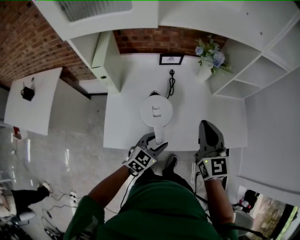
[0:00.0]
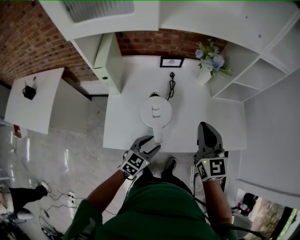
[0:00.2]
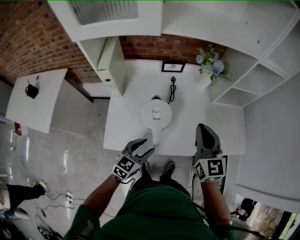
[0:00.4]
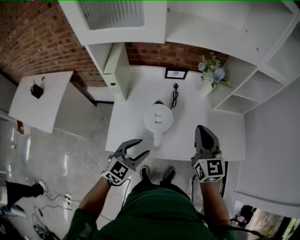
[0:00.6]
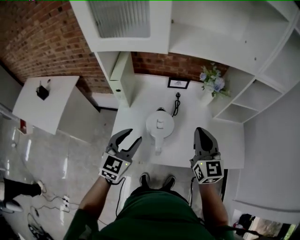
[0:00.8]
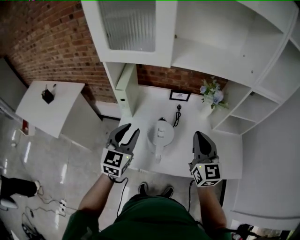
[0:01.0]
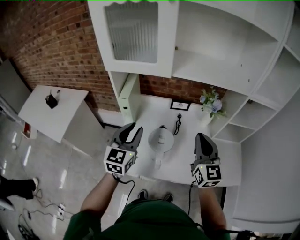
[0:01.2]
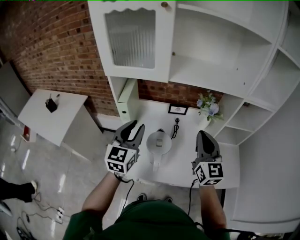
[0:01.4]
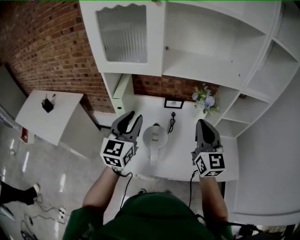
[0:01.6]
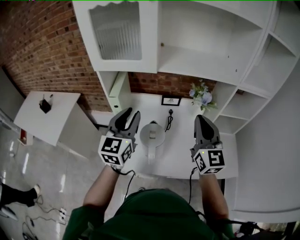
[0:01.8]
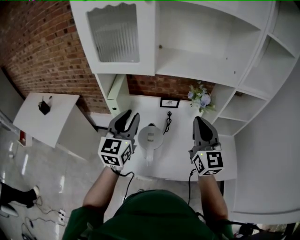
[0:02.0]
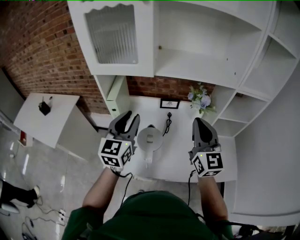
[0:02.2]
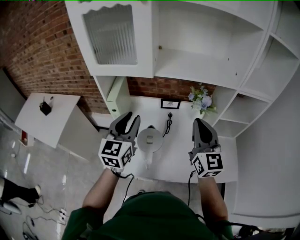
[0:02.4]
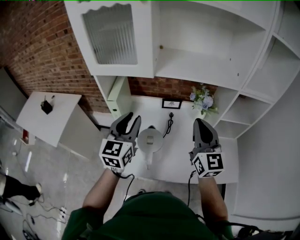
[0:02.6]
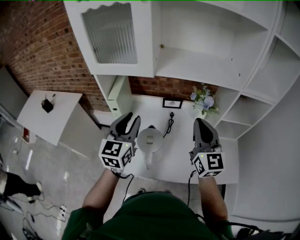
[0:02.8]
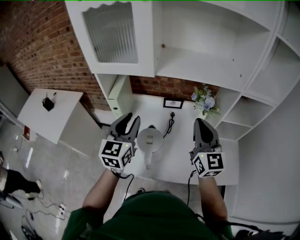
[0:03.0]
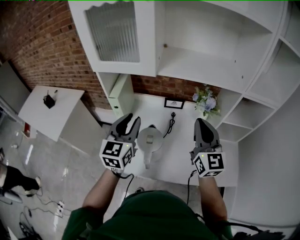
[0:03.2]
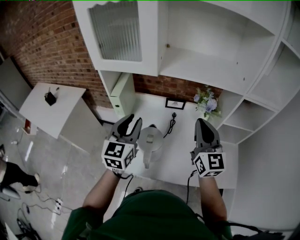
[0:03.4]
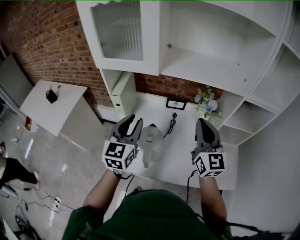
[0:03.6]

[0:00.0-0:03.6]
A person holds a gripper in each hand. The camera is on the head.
0:00.0 to 0:01.8: The right gripper moves upward, approximately 15 cm. The left gripper goes about 30 cm upward, and rotates about 50 degrees.
0:01.8 to 0:03.6: The right gripper changes place by some 5 cm.

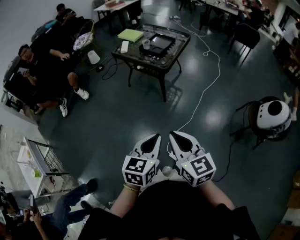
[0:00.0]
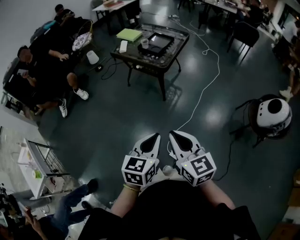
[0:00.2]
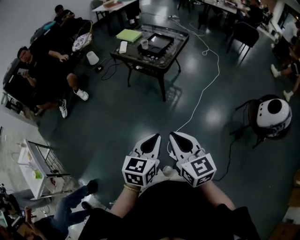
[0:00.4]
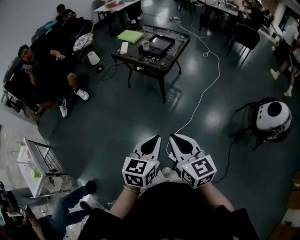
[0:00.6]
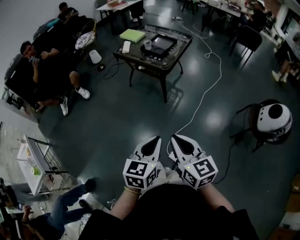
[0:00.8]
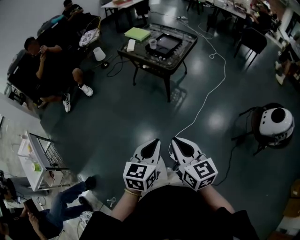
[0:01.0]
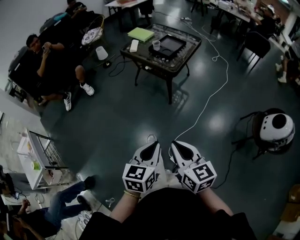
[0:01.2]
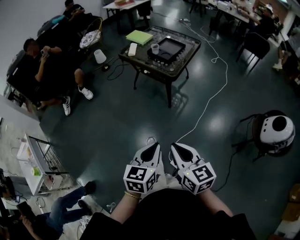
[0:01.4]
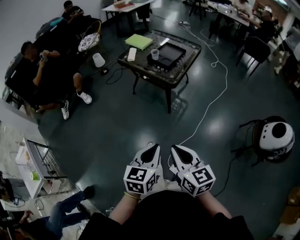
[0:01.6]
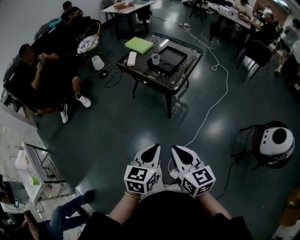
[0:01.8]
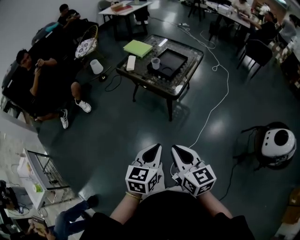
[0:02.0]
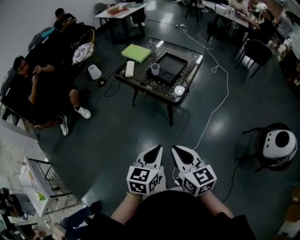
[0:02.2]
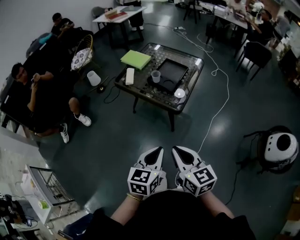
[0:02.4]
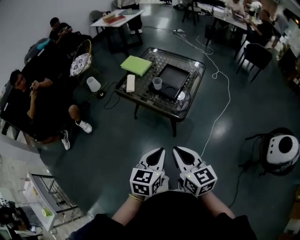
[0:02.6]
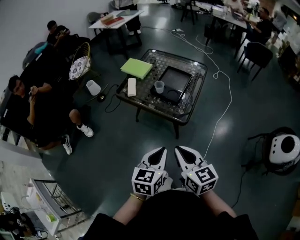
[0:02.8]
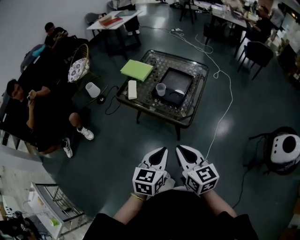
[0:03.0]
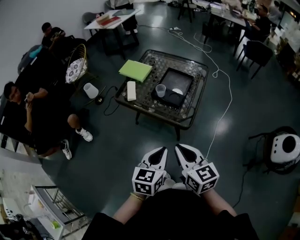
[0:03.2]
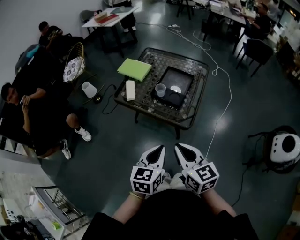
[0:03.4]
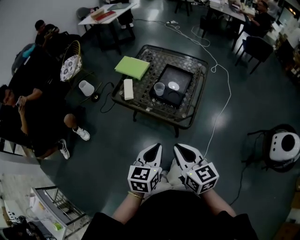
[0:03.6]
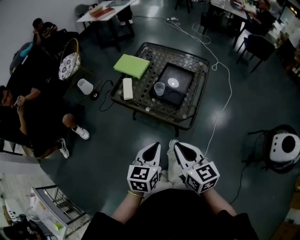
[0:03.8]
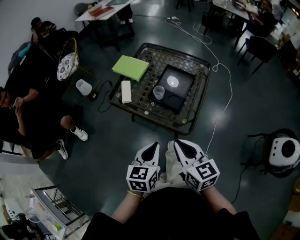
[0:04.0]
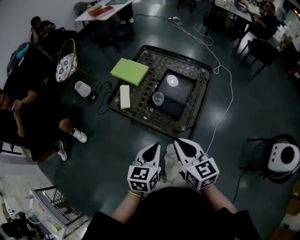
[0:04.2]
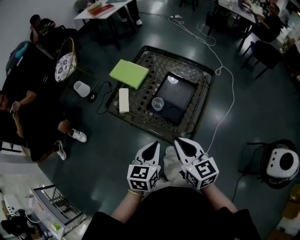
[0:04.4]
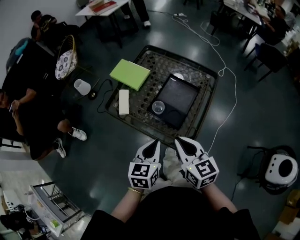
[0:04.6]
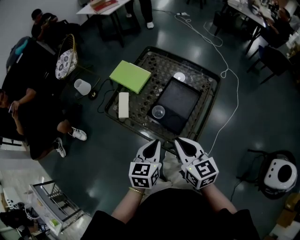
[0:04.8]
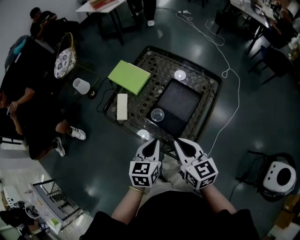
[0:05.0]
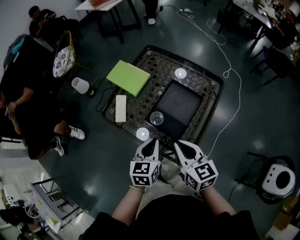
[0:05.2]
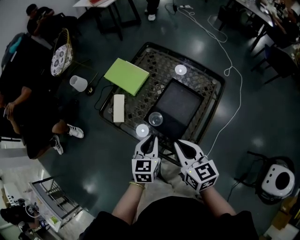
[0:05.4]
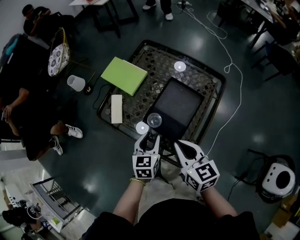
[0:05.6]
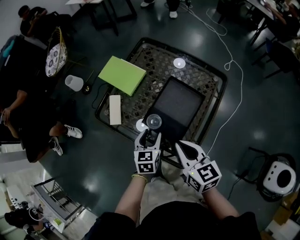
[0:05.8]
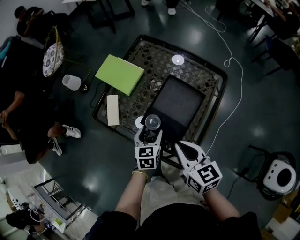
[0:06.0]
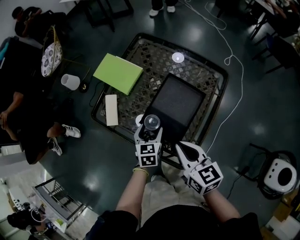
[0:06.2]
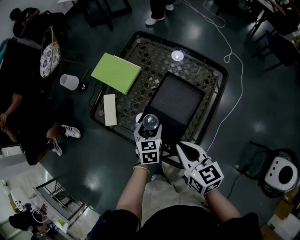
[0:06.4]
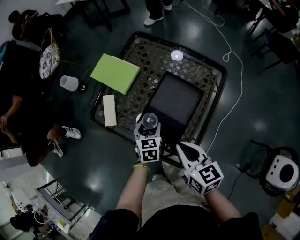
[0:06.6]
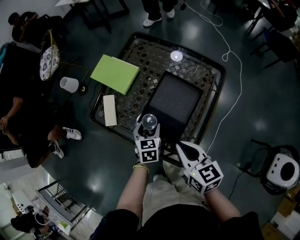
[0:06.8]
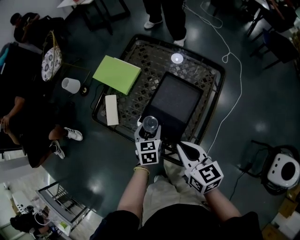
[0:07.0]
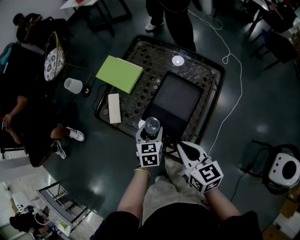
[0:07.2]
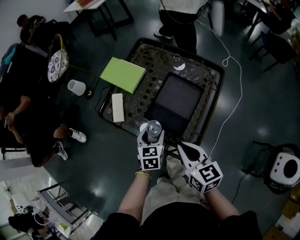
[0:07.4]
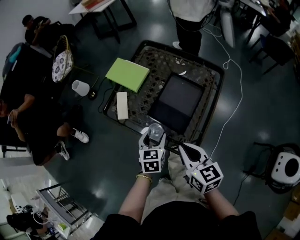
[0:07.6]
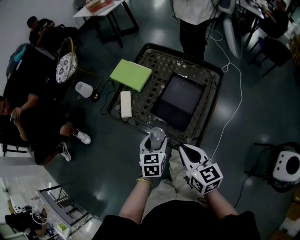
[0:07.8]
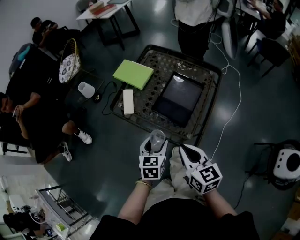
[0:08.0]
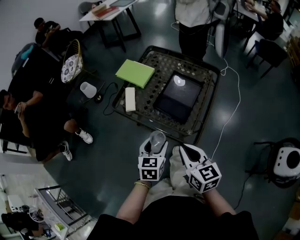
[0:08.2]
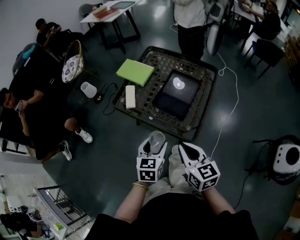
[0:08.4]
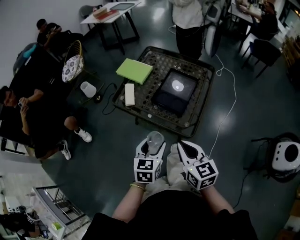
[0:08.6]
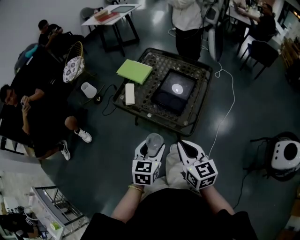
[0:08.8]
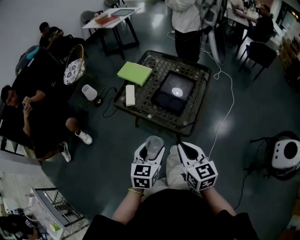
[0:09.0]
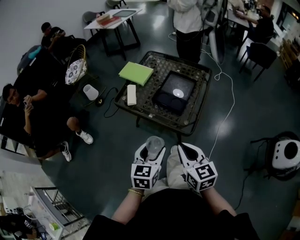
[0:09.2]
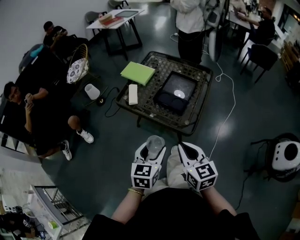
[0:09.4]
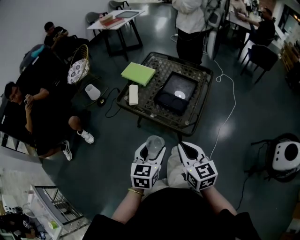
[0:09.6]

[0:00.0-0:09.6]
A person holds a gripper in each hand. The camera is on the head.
0:00.0 to 0:01.6: The grippers both shift forward by about 10 cm.
0:01.6 to 0:03.2: The two grippers go roughly 35 cm forward.
0:03.2 to 0:04.8: Both grippers travel together forward, about 25 cm.
0:04.8 to 0:06.4: The right gripper goes some 10 cm downward and forward; the left gripper travels downward and forward by approximately 25 cm, and opens up.
0:06.4 to 0:08.0: The right gripper moves backward, to the left and upward, roughly 15 cm, while the left gripper moves backward and upward, some 20 cm.
0:08.0 to 0:09.6: The left gripper shifts about 20 cm backward and upward, while the right gripper goes some 15 cm backward.

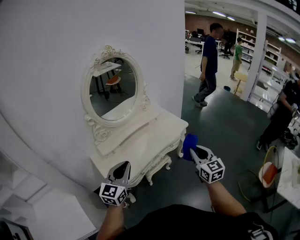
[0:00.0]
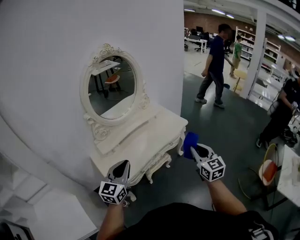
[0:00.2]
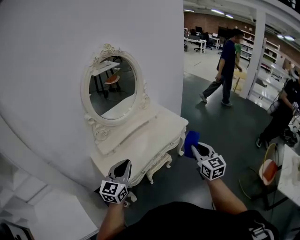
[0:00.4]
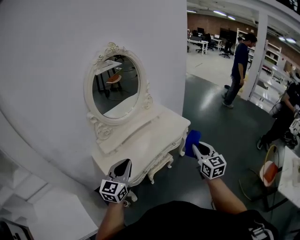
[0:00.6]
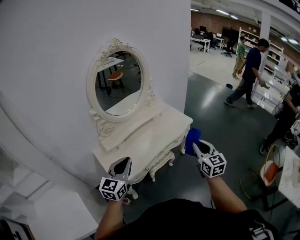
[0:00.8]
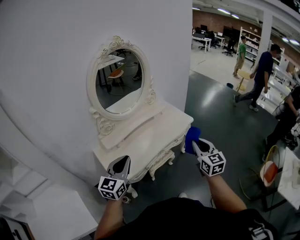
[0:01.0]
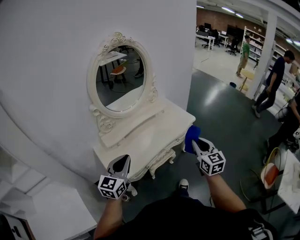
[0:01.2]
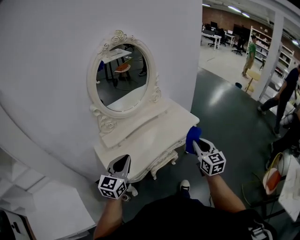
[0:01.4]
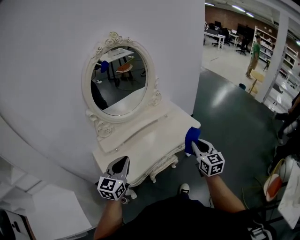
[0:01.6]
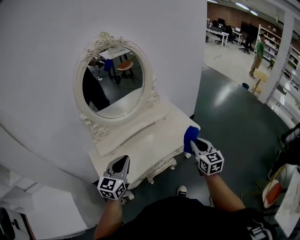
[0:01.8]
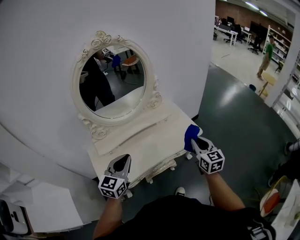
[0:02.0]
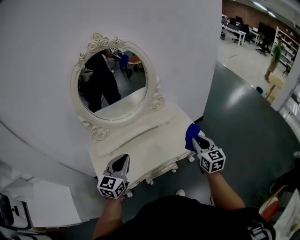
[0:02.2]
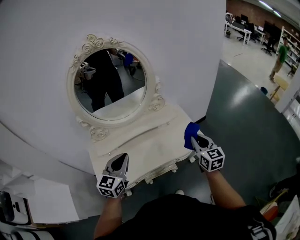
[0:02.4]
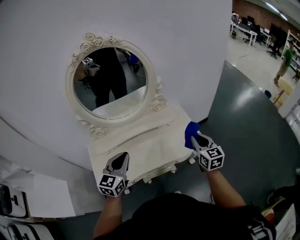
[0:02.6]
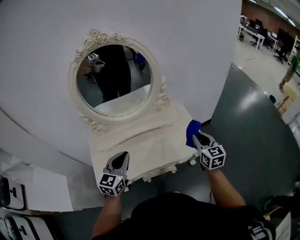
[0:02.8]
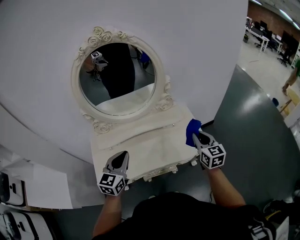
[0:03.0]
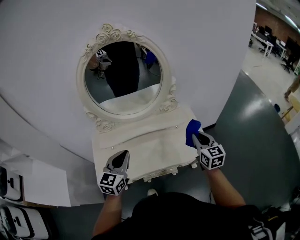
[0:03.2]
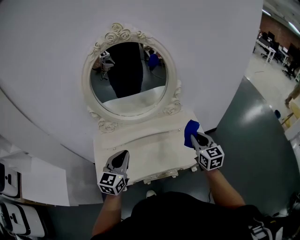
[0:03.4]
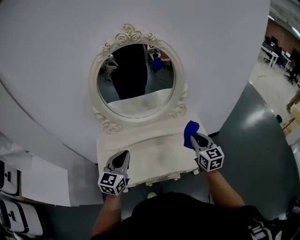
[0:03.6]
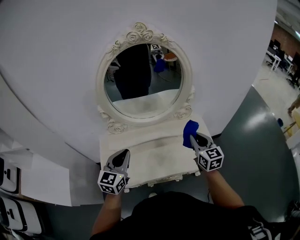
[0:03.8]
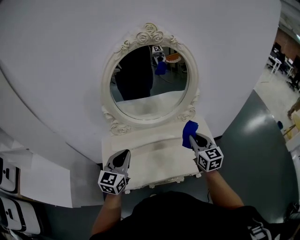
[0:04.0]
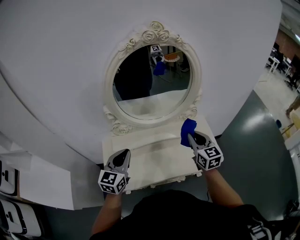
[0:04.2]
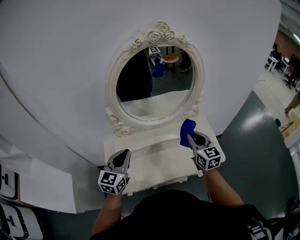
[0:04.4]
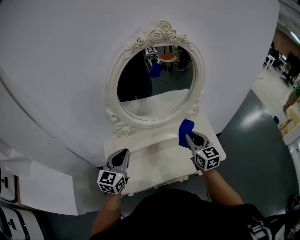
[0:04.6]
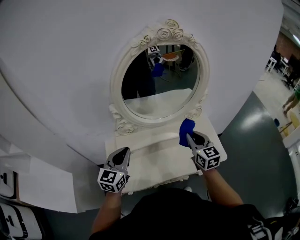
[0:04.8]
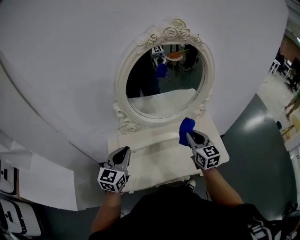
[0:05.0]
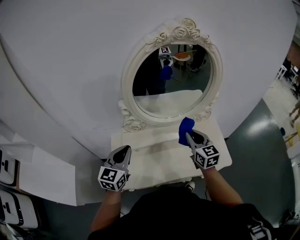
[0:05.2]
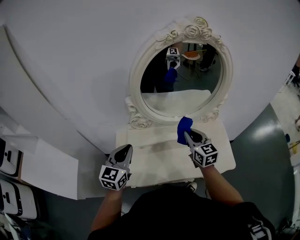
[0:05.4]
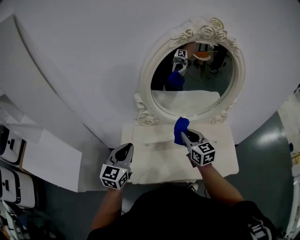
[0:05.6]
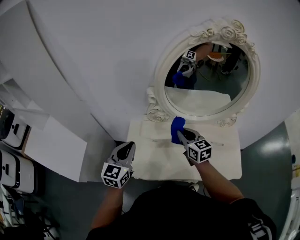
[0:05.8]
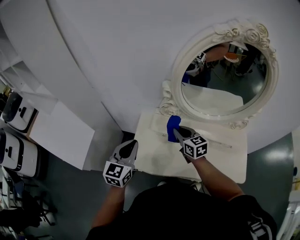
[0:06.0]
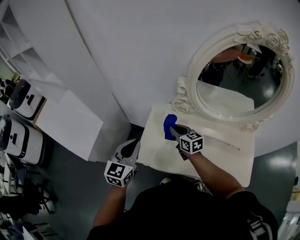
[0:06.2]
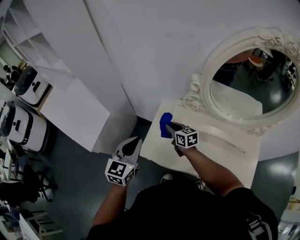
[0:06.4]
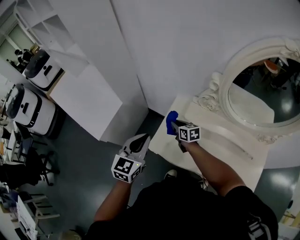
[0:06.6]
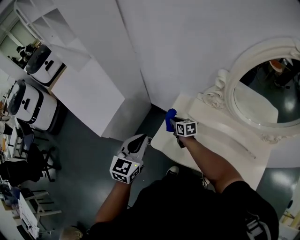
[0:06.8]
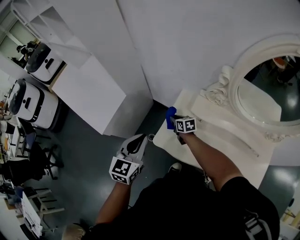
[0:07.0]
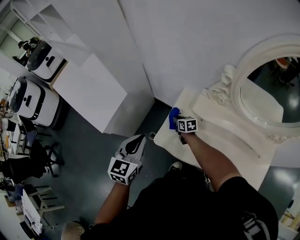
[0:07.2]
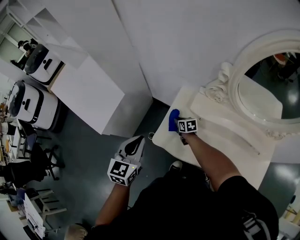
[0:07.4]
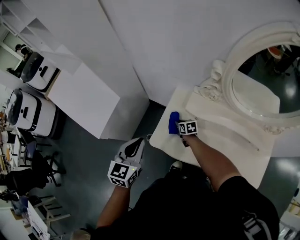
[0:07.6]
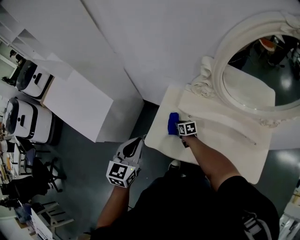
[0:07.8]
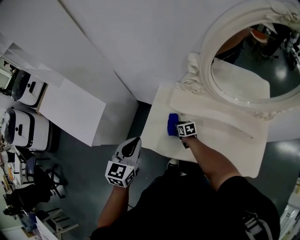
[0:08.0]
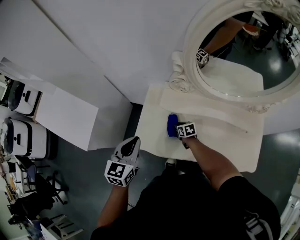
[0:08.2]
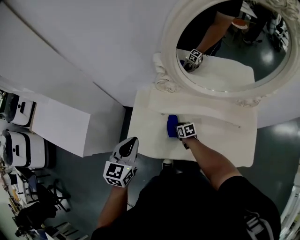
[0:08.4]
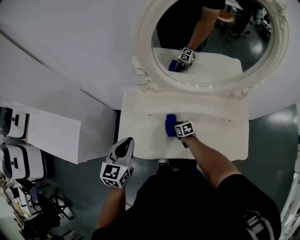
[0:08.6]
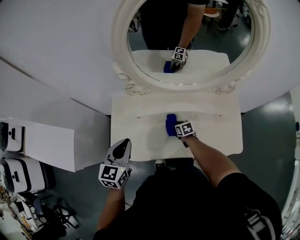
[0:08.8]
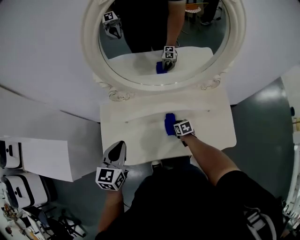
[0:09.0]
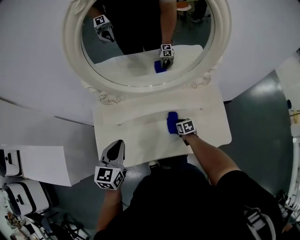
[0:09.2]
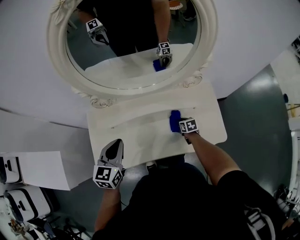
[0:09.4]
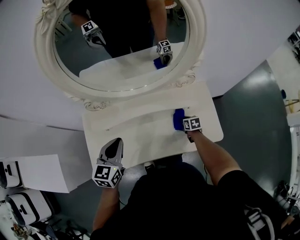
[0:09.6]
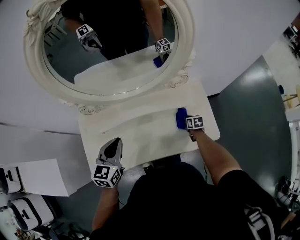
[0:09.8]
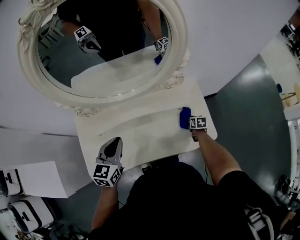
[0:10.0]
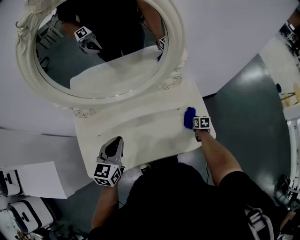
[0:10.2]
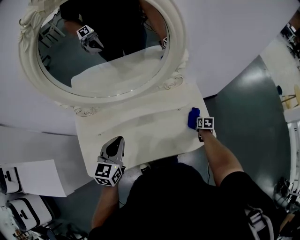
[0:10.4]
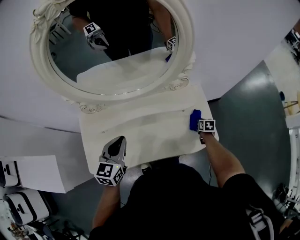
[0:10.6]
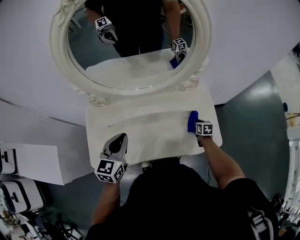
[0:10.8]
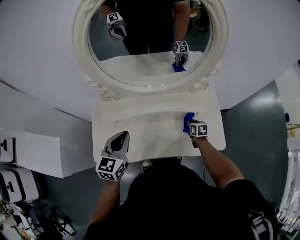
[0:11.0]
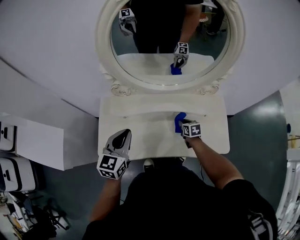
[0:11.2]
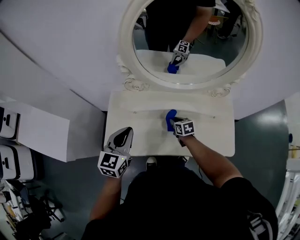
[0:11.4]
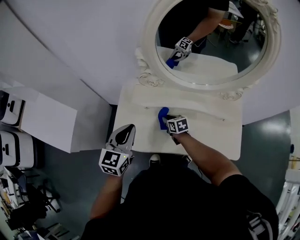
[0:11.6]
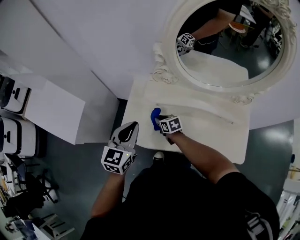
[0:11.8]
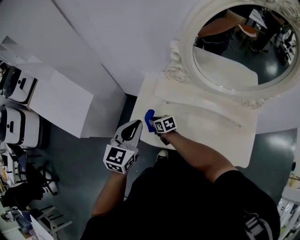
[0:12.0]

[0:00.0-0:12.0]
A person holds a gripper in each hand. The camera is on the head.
0:00.0 to 0:01.6: Both grippers move forward, some 15 cm.
0:01.6 to 0:03.0: The left gripper heads forward and to the right, covering roughly 20 cm, and rotates roughly 20 degrees, while the right gripper heads forward, covering about 30 cm.
0:03.0 to 0:04.4: Both grippers move to the left, approximately 20 cm.
0:04.4 to 0:06.0: The right gripper moves about 30 cm, and swivels roughly 40 degrees. Meanwhile the left gripper ends up some 15 cm from where it was, and swivels roughly 20 degrees.
0:06.0 to 0:07.6: The left gripper is displaced to the left and downward by approximately 15 cm. Meanwhile the right gripper is displaced downward and to the left by about 35 cm, and changes its angle by about 30 degrees.
0:07.6 to 0:09.0: The right gripper ends up some 40 cm from where it was, and swivels approximately 30 degrees; the left gripper shifts by about 25 cm, and changes its angle by about 20 degrees.
0:09.0 to 0:10.4: The left gripper shifts by about 20 cm. Meanwhile the right gripper moves approximately 40 cm, and rotates roughly 30 degrees.
0:10.4 to 0:12.0: The right gripper moves some 80 cm, and turns by approximately 70 degrees, while the left gripper shifts by roughly 30 cm, and turns by some 30 degrees.
